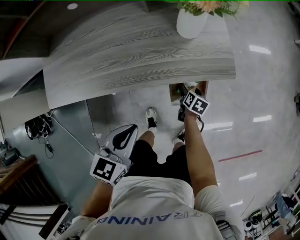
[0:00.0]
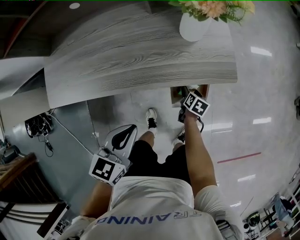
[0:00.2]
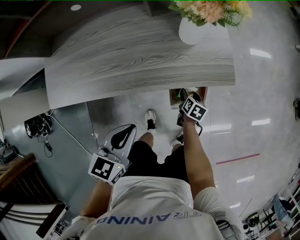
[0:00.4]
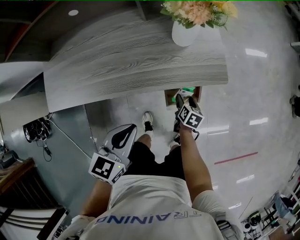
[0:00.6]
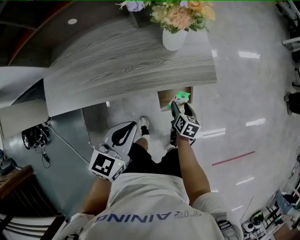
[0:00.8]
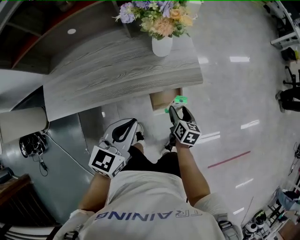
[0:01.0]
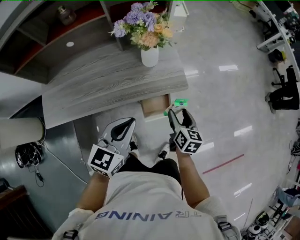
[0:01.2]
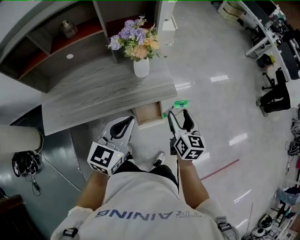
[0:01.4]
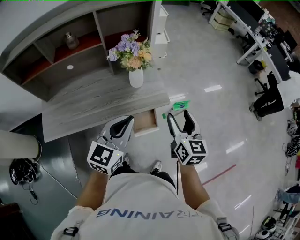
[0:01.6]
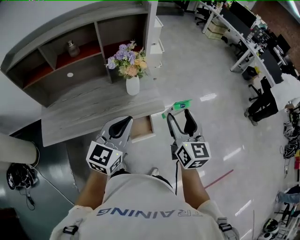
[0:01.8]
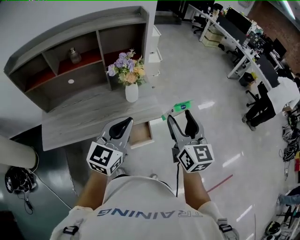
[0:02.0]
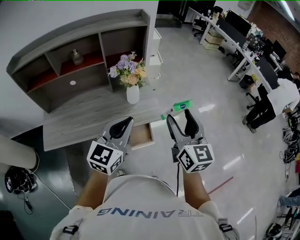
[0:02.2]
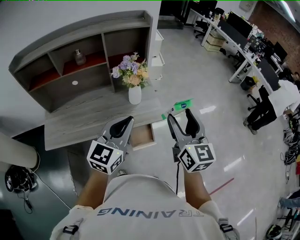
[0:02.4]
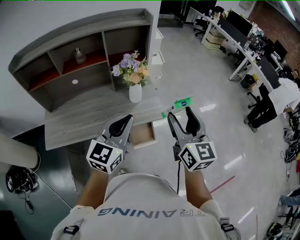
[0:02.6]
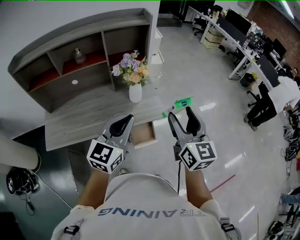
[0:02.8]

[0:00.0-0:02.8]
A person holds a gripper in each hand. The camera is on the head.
0:00.0 to 0:01.4: The right gripper travels upward by some 40 cm, and tips its fingers upward by approximately 40 degrees. Meanwhile the left gripper is displaced upward and to the right by roughly 20 cm, and changes its angle by some 20 degrees.
0:01.4 to 0:02.8: The left gripper shifts roughly 10 cm upward, while the right gripper moves upward, approximately 25 cm, and rotates about 30 degrees.

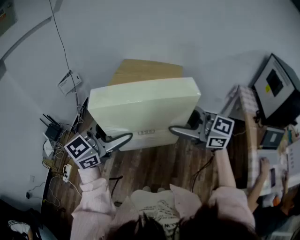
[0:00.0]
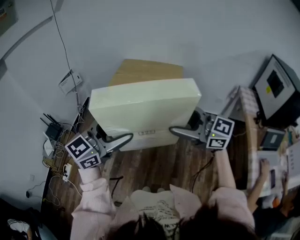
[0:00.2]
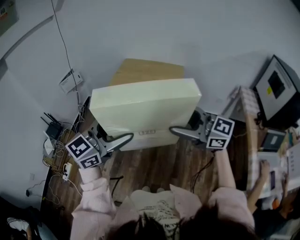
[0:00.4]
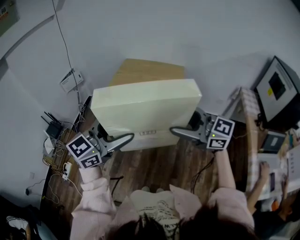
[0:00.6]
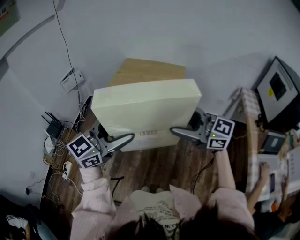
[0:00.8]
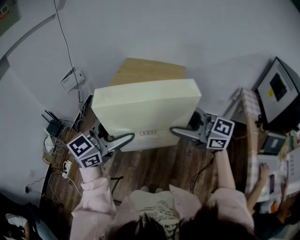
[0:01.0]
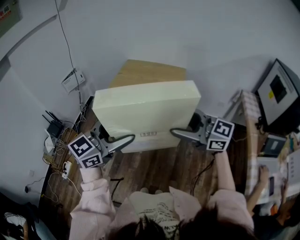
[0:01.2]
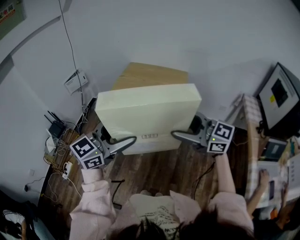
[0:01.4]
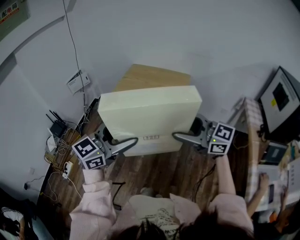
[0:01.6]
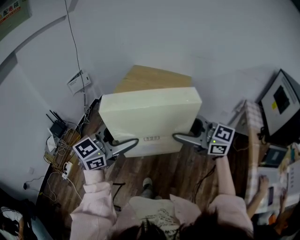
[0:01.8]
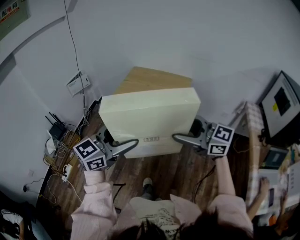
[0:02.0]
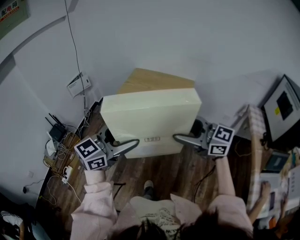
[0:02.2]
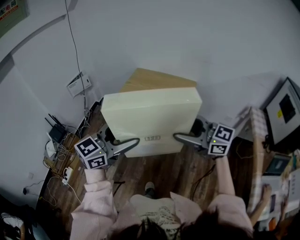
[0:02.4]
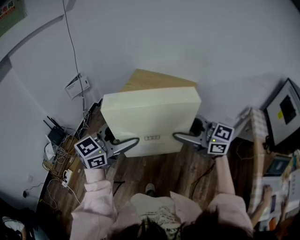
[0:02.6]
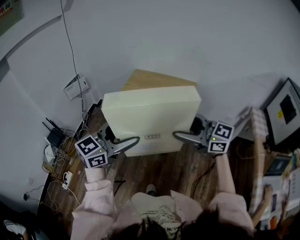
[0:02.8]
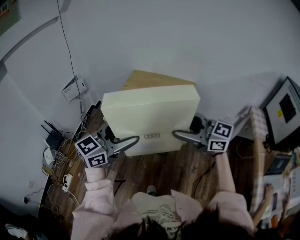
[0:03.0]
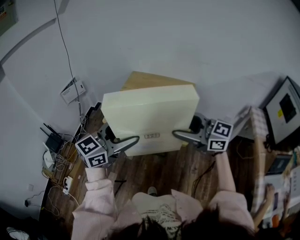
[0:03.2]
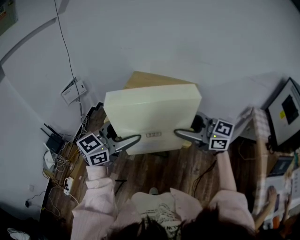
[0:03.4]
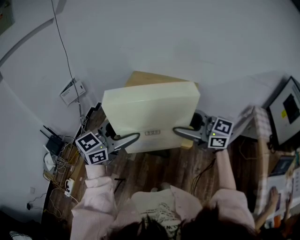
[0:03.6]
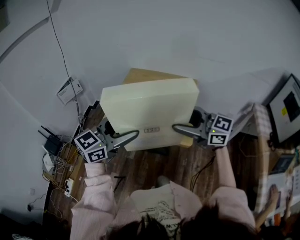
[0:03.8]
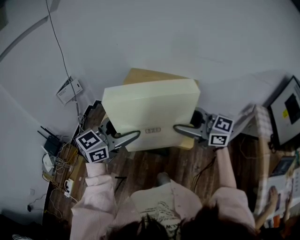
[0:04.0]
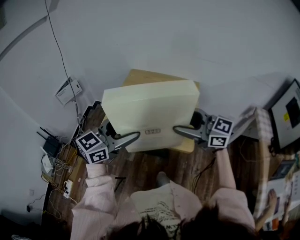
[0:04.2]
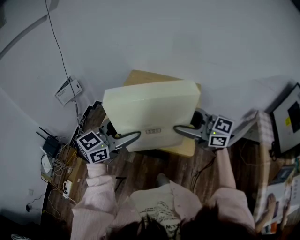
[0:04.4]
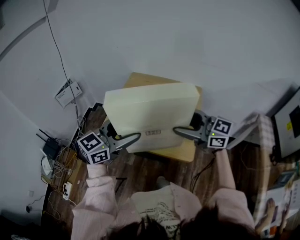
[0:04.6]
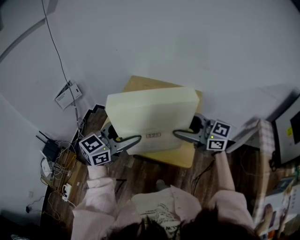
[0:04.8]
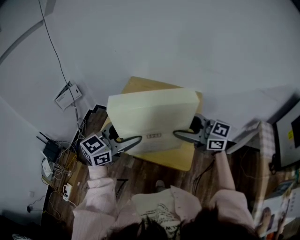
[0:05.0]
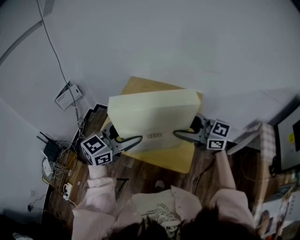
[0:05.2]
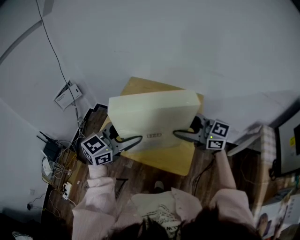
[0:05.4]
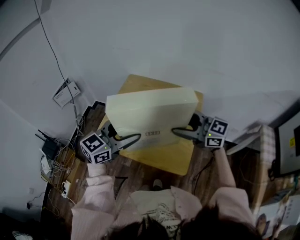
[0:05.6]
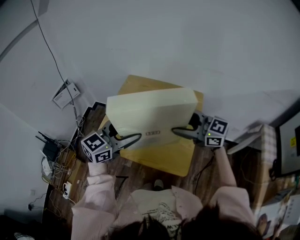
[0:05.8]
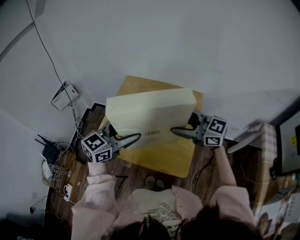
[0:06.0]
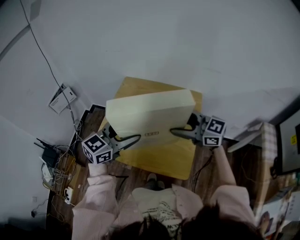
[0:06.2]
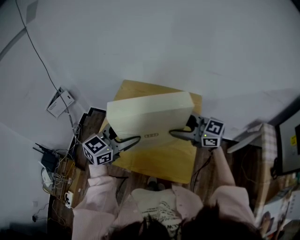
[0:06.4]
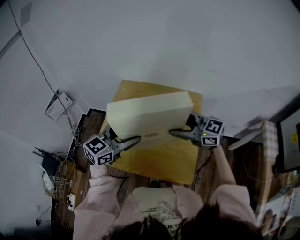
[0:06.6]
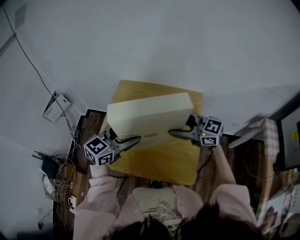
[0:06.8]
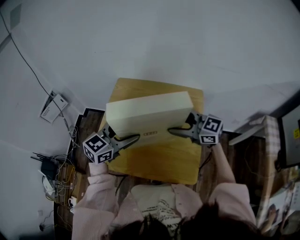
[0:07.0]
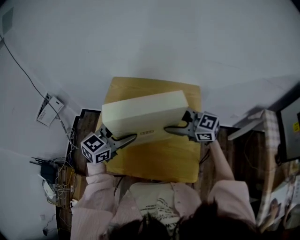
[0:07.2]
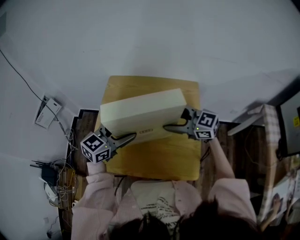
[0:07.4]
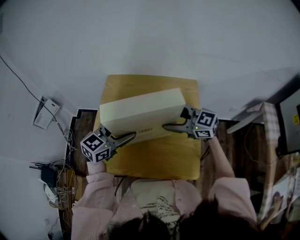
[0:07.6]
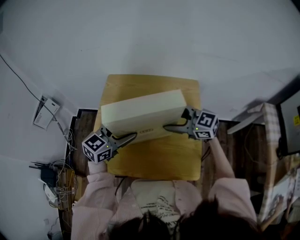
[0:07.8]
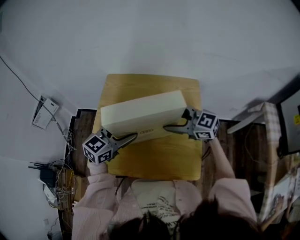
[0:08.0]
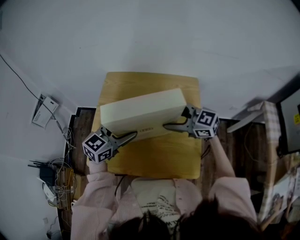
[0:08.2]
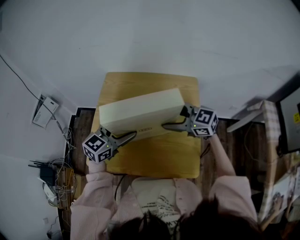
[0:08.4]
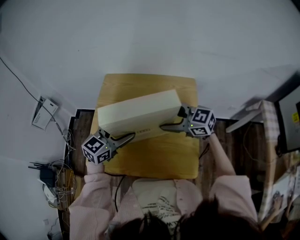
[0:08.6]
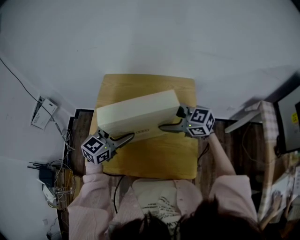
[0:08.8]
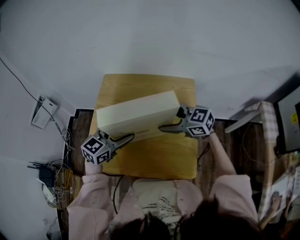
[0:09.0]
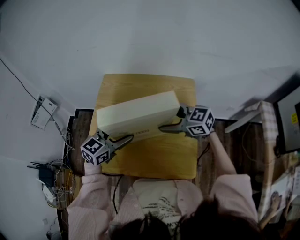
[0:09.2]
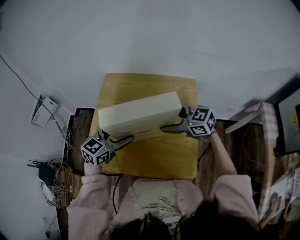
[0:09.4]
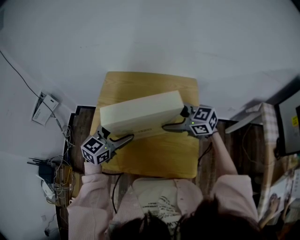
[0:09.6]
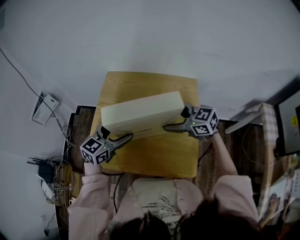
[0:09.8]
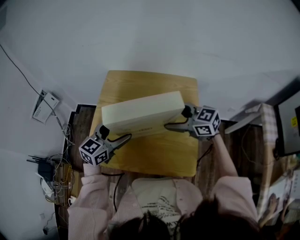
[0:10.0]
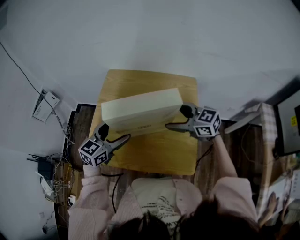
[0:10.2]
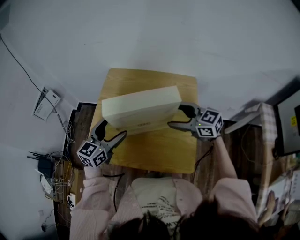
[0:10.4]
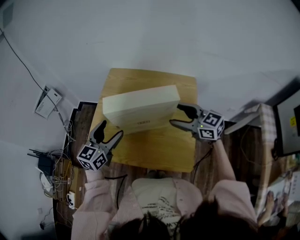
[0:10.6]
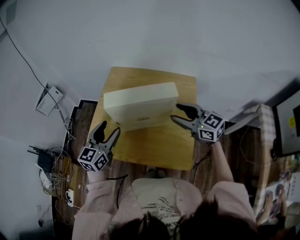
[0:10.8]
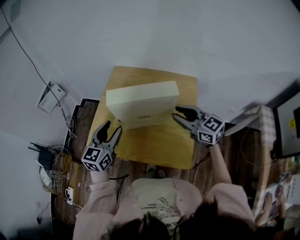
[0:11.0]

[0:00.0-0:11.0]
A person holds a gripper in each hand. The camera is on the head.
0:00.0 to 0:01.6: The grippers make only small movements.
0:01.6 to 0:03.2: The two grippers go about 15 cm forward.
0:03.2 to 0:04.8: Both grippers travel together forward, about 15 cm.
0:04.8 to 0:06.2: The two grippers go approximately 10 cm forward.
0:06.2 to 0:07.8: The right gripper moves downward and forward, about 15 cm. The left gripper is displaced forward and downward by about 15 cm.
0:07.8 to 0:09.4: There are only small adjustments of the grippers.
0:09.4 to 0:11.0: The right gripper is displaced backward and upward by some 10 cm, and closes; the left gripper is displaced to the left and backward by approximately 10 cm, changes its angle by some 30 degrees, and closes its fingers.

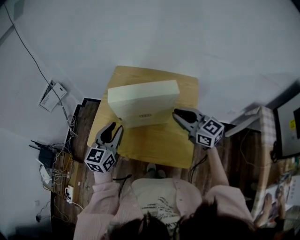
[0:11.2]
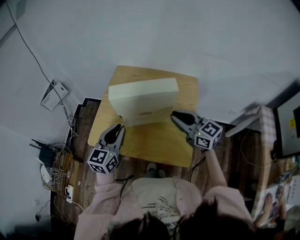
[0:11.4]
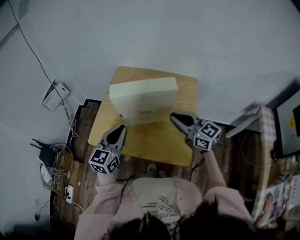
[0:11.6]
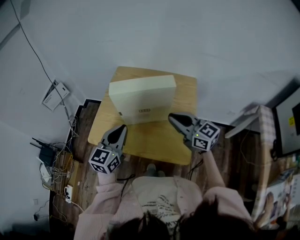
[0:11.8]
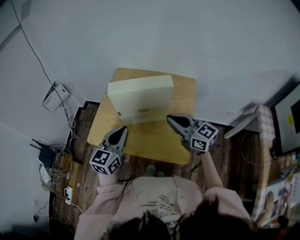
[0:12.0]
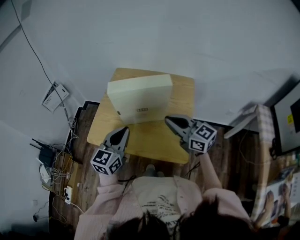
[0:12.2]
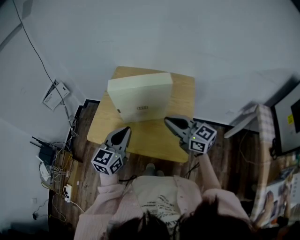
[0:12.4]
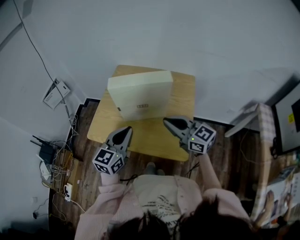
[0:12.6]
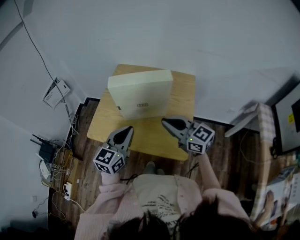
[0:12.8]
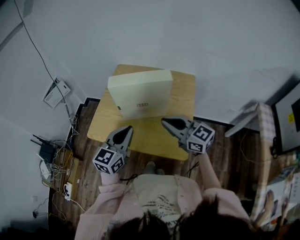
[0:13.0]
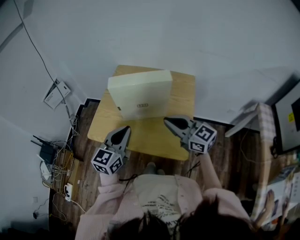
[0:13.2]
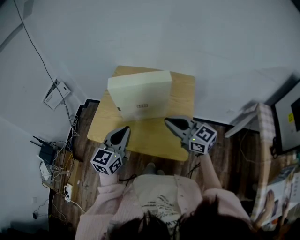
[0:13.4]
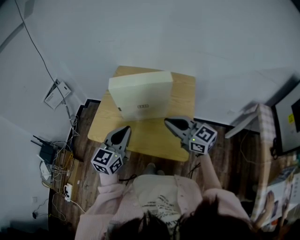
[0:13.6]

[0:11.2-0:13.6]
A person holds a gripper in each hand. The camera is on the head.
0:11.2 to 0:12.4: Both grippers travel together backward, some 5 cm.
0:12.4 to 0:13.6: The grippers stay close to where they were, moving slightly.

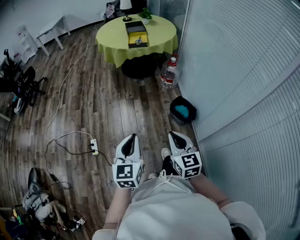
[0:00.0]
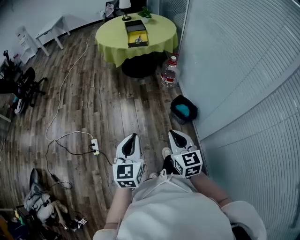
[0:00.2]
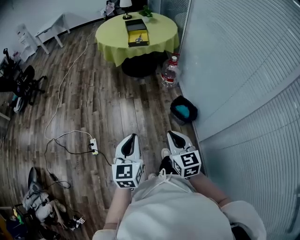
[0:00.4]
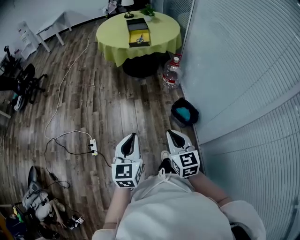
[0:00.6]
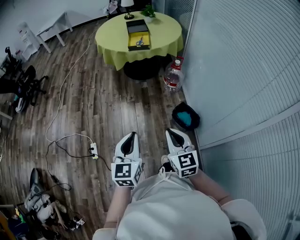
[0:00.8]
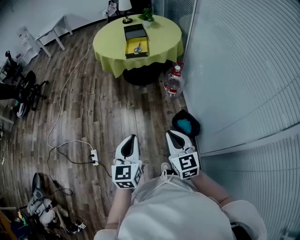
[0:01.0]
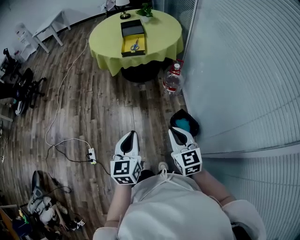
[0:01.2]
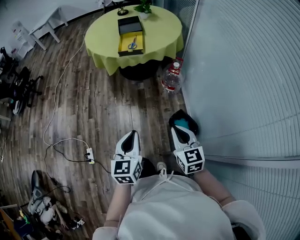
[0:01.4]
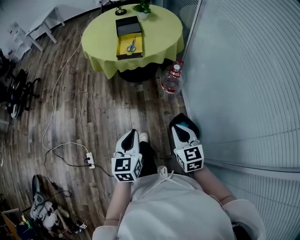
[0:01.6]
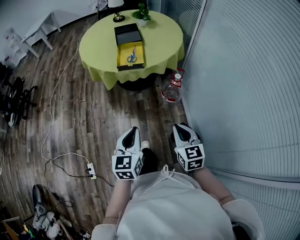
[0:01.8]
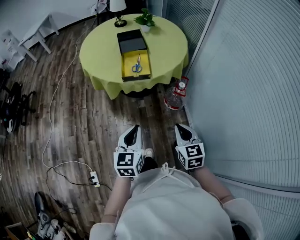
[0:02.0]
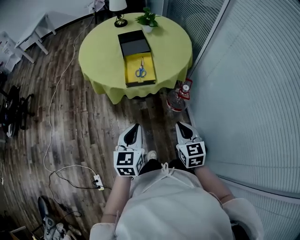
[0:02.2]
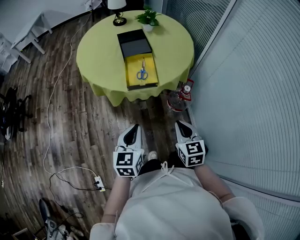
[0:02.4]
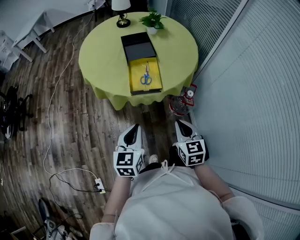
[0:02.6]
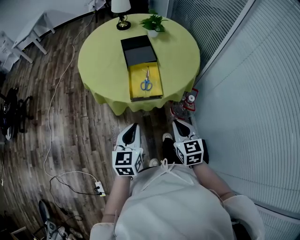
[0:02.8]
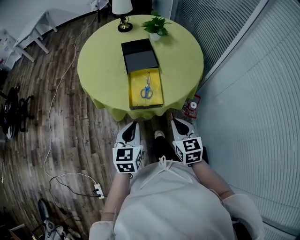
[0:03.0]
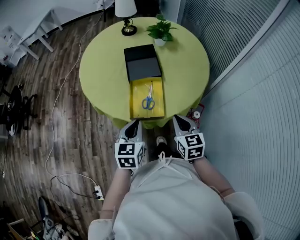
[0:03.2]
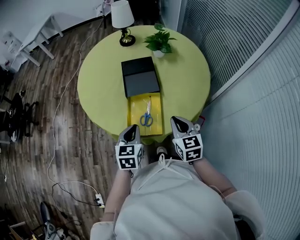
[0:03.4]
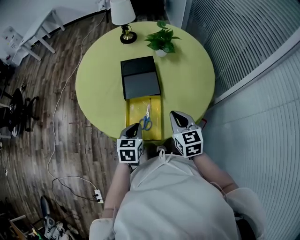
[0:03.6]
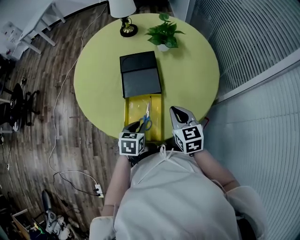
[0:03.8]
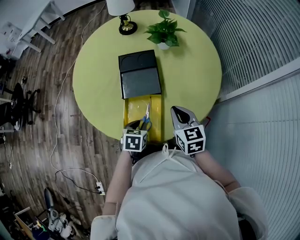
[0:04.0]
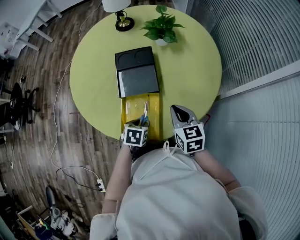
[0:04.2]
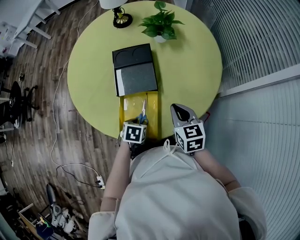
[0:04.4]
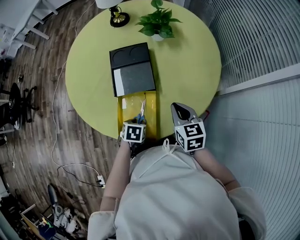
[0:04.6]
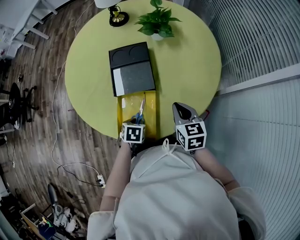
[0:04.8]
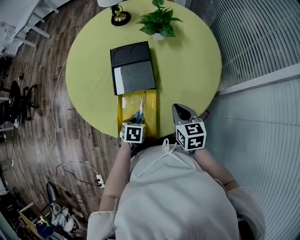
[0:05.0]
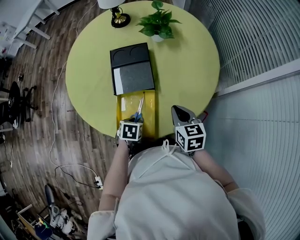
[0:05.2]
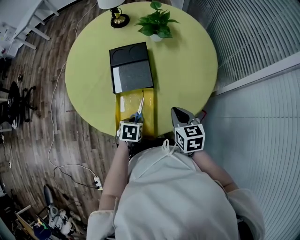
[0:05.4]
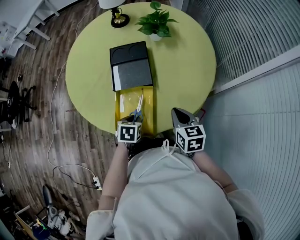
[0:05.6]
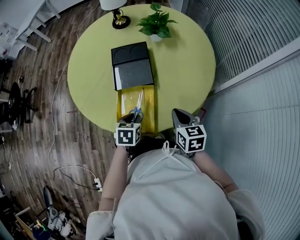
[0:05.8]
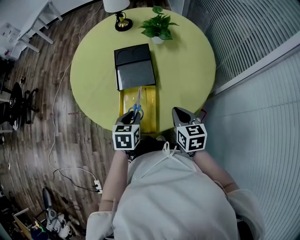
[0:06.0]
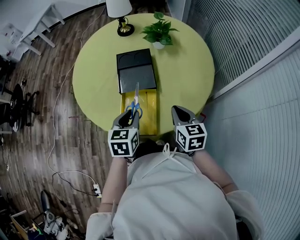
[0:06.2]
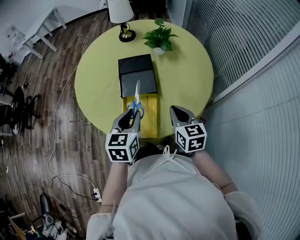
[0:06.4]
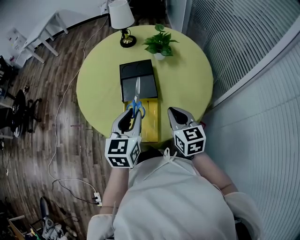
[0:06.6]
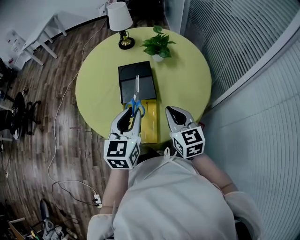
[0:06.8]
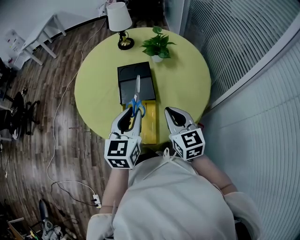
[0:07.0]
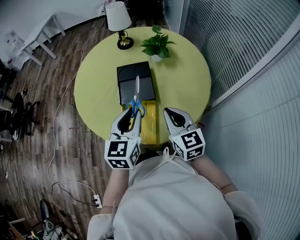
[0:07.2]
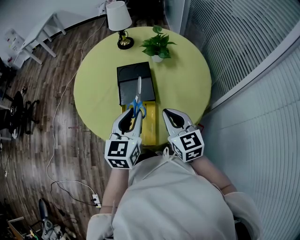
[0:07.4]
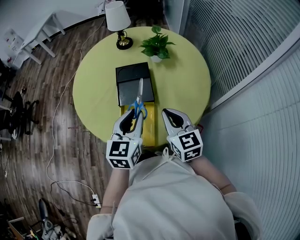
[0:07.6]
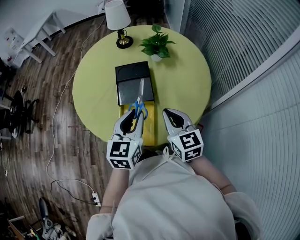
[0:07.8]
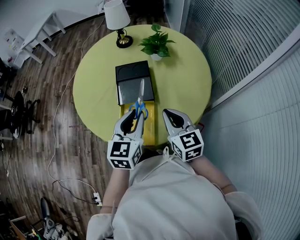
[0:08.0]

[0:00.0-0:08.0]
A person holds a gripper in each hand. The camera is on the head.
0:00.0 to 0:01.6: The pair of grippers is taken forward, about 40 cm.
0:01.6 to 0:03.2: The two grippers travel together, forward, approximately 60 cm.
0:03.2 to 0:04.8: The right gripper travels forward by roughly 20 cm. Meanwhile the left gripper moves downward and forward, some 25 cm, angles its fingers downward, by some 40 degrees, and opens its fingers.
0:04.8 to 0:06.4: The right gripper moves upward and backward, approximately 10 cm. Meanwhile the left gripper travels upward by approximately 25 cm, and tips its fingers upward by roughly 40 degrees.
0:06.4 to 0:08.0: The left gripper shifts by about 5 cm. Meanwhile the right gripper shifts by roughly 5 cm.
